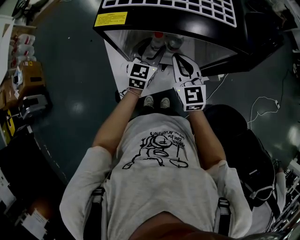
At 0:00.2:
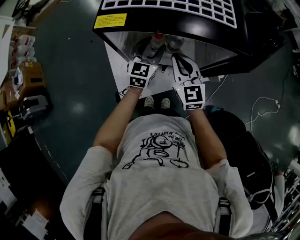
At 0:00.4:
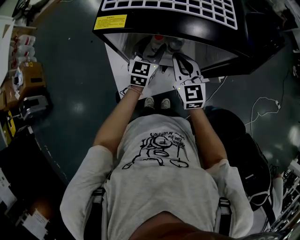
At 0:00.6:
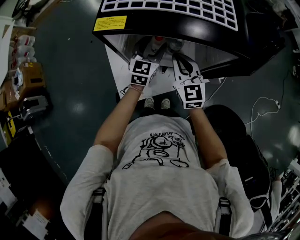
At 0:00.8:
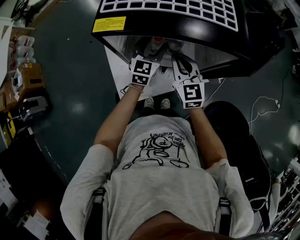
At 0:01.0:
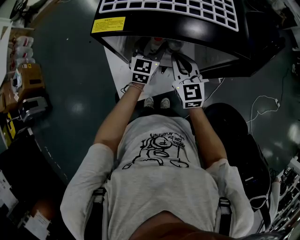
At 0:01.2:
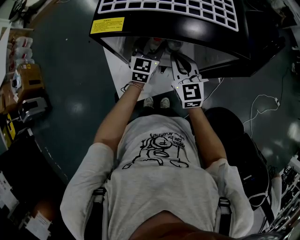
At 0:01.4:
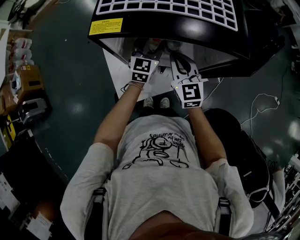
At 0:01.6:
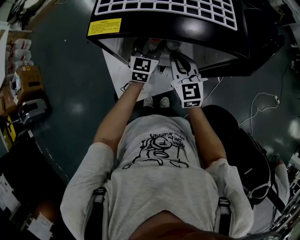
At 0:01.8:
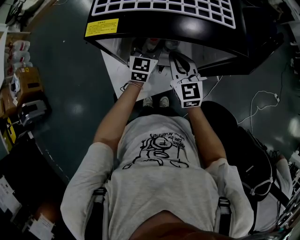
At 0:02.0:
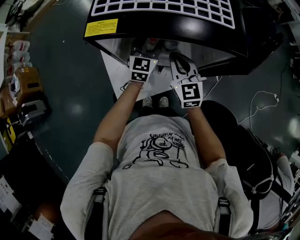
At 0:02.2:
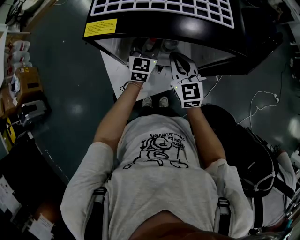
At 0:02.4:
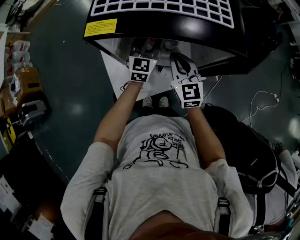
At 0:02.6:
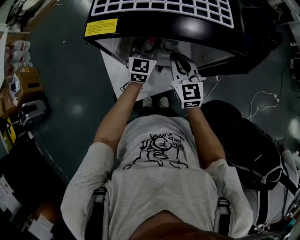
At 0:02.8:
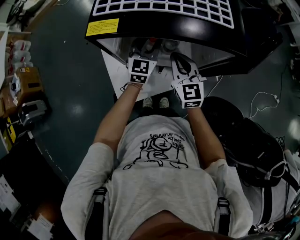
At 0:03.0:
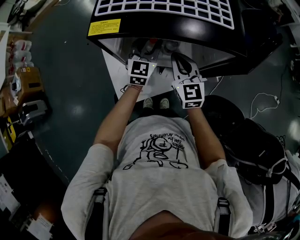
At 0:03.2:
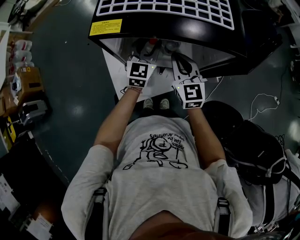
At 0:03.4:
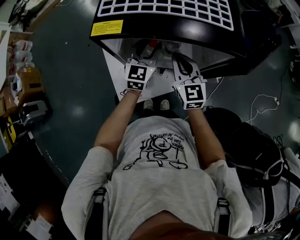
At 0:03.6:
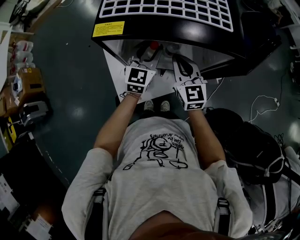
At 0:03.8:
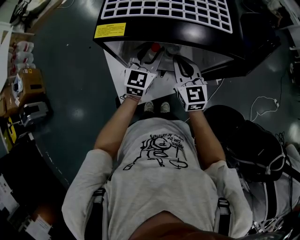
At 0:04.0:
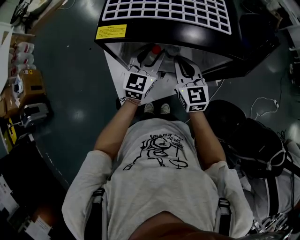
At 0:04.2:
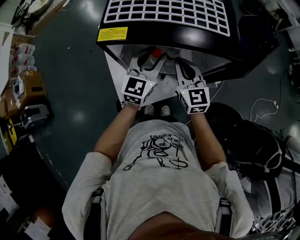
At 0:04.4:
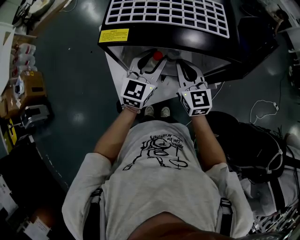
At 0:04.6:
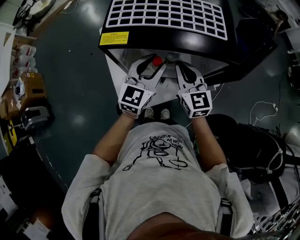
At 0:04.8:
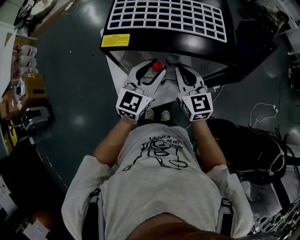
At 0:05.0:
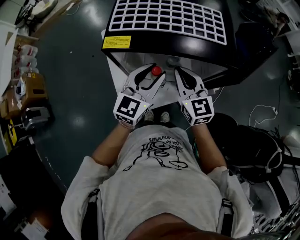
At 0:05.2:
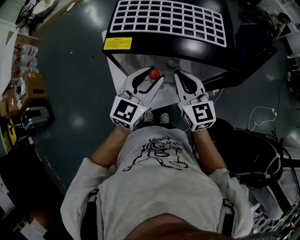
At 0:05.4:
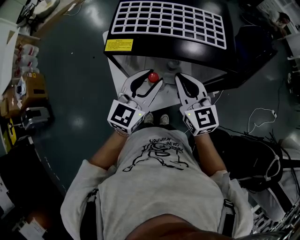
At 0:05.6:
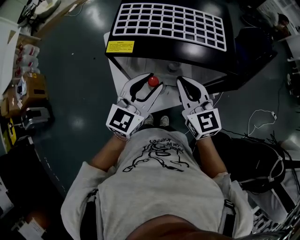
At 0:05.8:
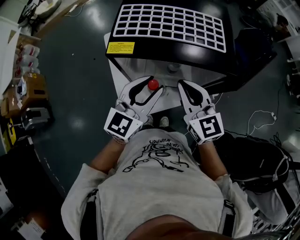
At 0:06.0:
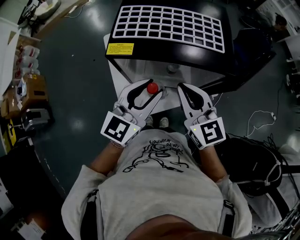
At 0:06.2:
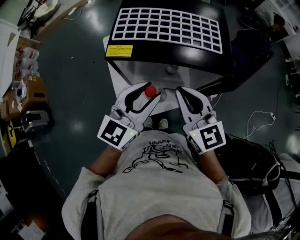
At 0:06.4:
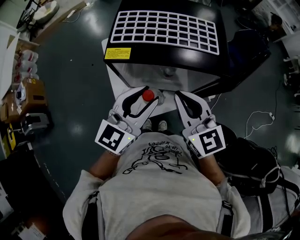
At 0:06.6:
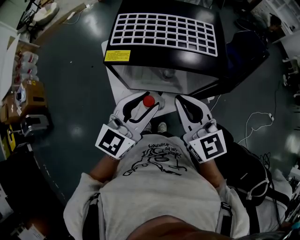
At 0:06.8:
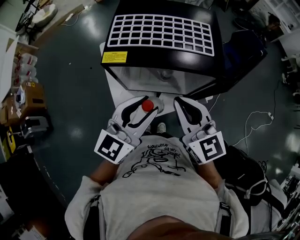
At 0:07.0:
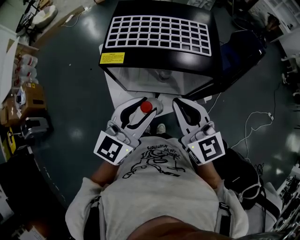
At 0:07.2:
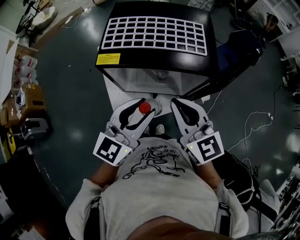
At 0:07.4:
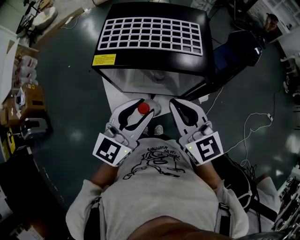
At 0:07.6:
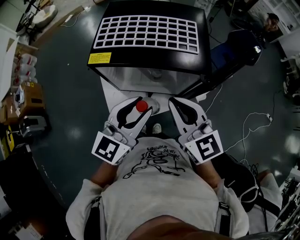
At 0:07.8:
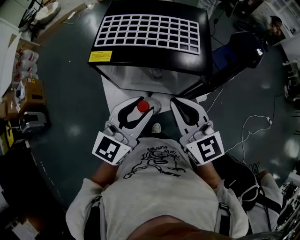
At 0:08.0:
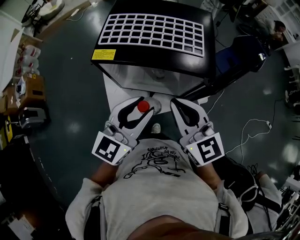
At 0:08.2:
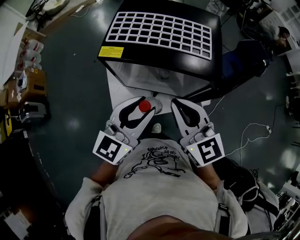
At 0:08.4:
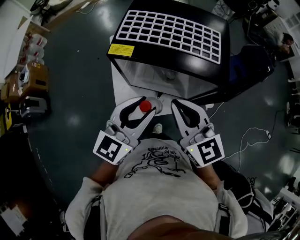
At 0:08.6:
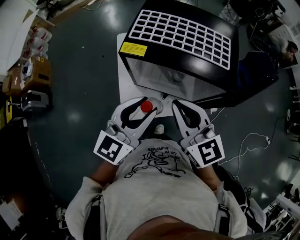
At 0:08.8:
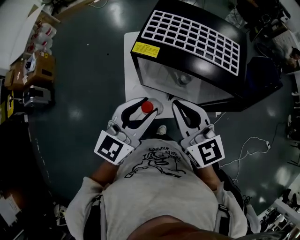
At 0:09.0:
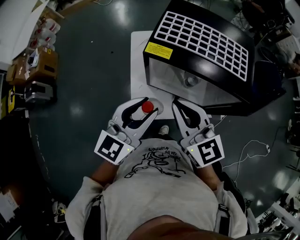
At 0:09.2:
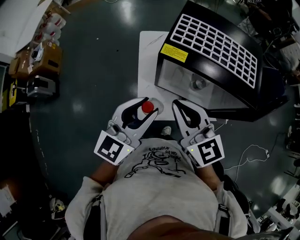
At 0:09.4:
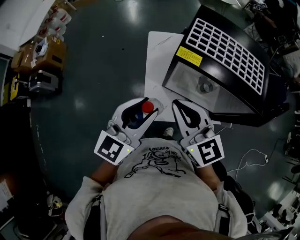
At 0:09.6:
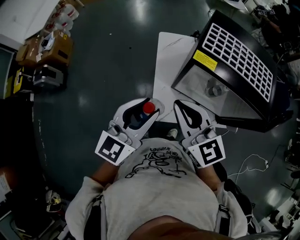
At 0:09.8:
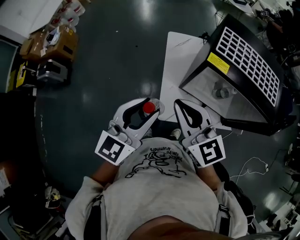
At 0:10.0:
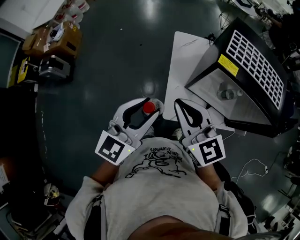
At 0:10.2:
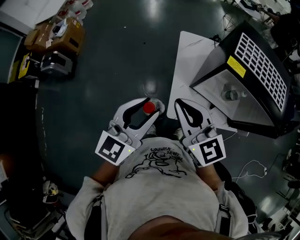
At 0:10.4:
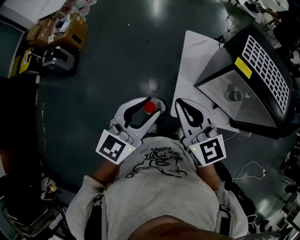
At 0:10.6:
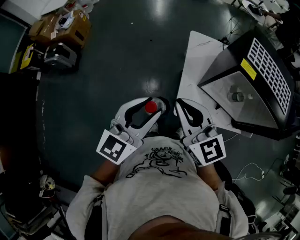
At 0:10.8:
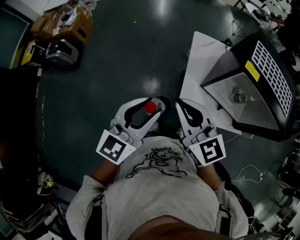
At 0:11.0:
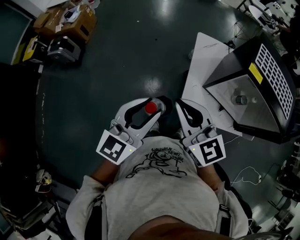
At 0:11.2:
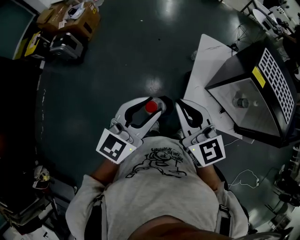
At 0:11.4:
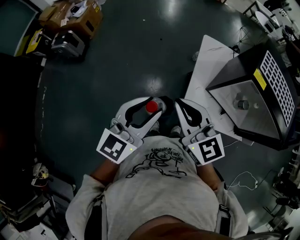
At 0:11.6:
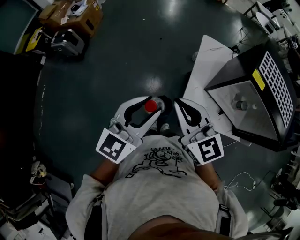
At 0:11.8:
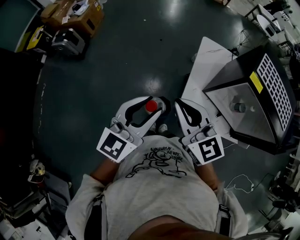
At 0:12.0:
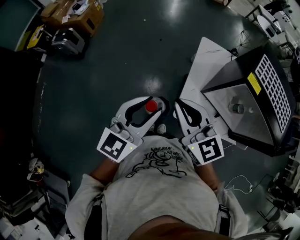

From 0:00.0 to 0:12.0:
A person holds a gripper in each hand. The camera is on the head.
From 0:00.0 to 0:01.6: The left gripper heads forward, covering roughly 5 cm.
From 0:01.6 to 0:03.0: The grippers stay close to where they were, moving slightly.
From 0:03.0 to 0:04.4: The left gripper shifts some 10 cm upward and backward.
From 0:04.4 to 0:06.0: Both grippers move upward and backward, roughly 15 cm.
From 0:06.0 to 0:07.6: Both grippers travel together to the right, approximately 5 cm.
From 0:07.6 to 0:09.0: The grippers both shift to the left by roughly 15 cm.
From 0:09.0 to 0:10.4: The two grippers go roughly 25 cm to the left.

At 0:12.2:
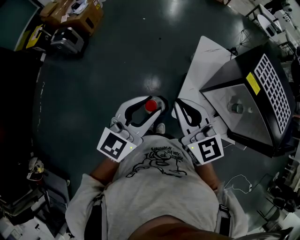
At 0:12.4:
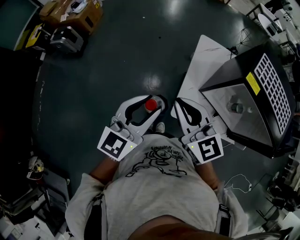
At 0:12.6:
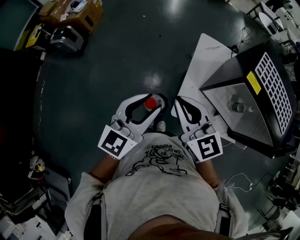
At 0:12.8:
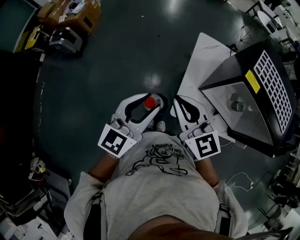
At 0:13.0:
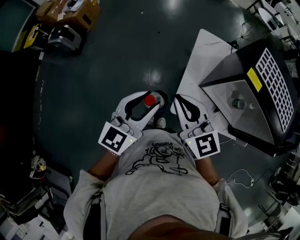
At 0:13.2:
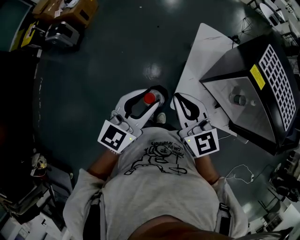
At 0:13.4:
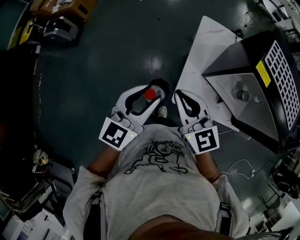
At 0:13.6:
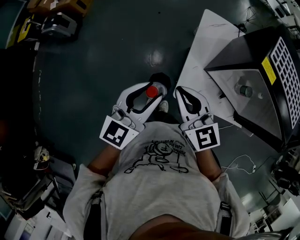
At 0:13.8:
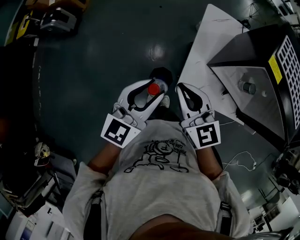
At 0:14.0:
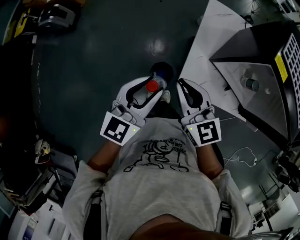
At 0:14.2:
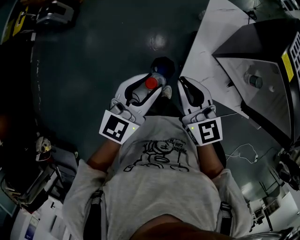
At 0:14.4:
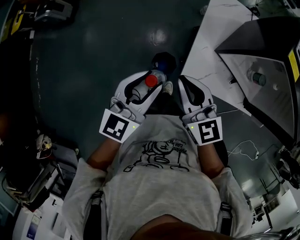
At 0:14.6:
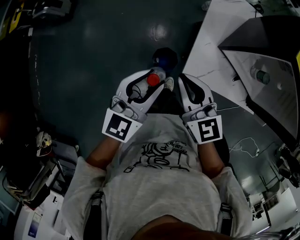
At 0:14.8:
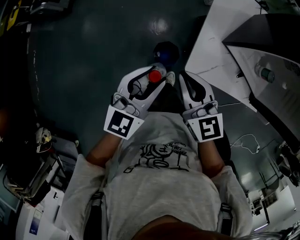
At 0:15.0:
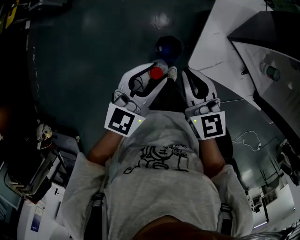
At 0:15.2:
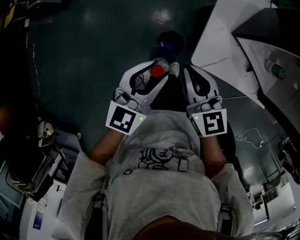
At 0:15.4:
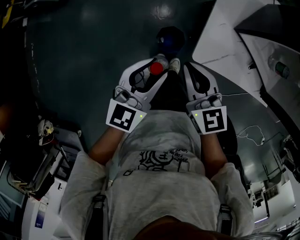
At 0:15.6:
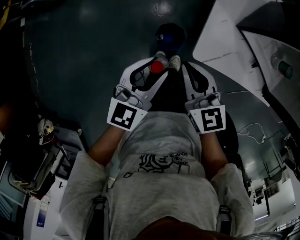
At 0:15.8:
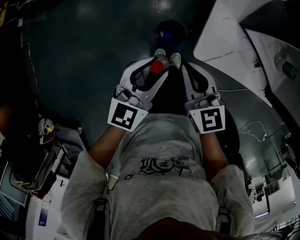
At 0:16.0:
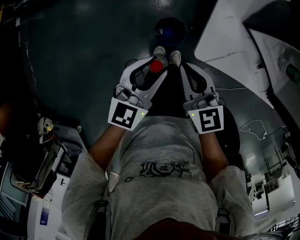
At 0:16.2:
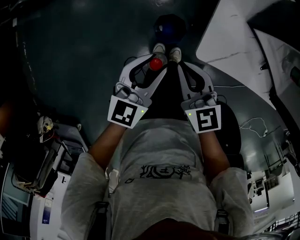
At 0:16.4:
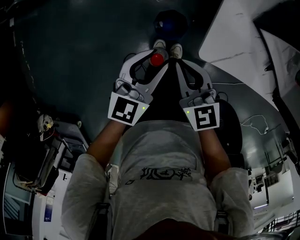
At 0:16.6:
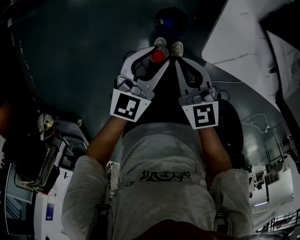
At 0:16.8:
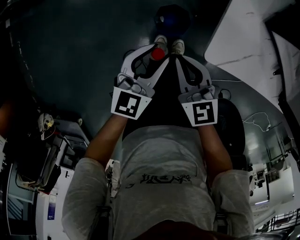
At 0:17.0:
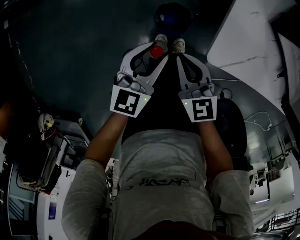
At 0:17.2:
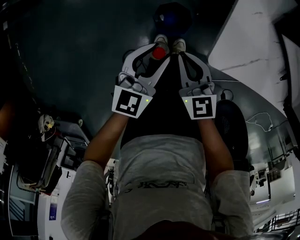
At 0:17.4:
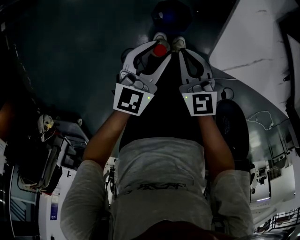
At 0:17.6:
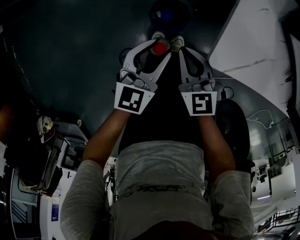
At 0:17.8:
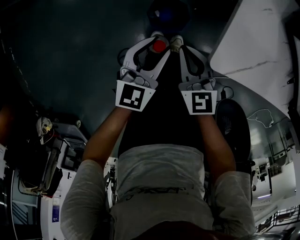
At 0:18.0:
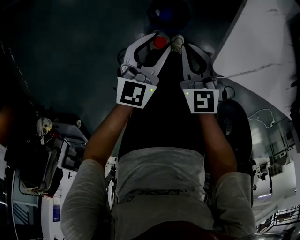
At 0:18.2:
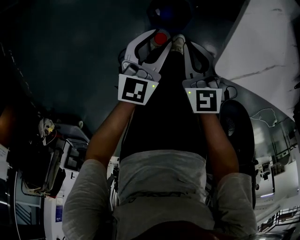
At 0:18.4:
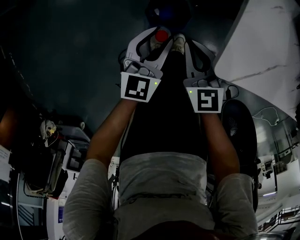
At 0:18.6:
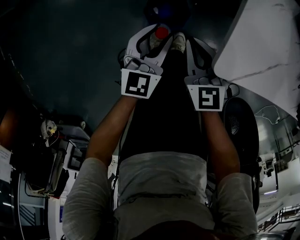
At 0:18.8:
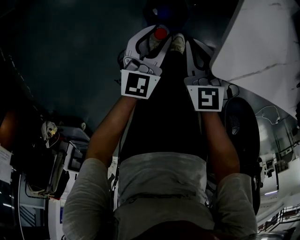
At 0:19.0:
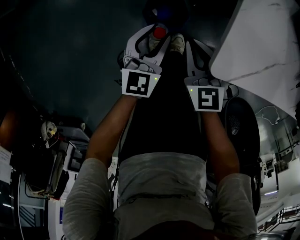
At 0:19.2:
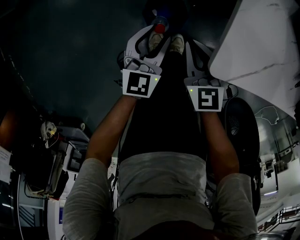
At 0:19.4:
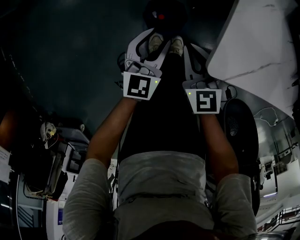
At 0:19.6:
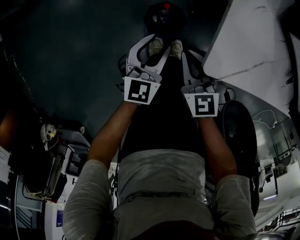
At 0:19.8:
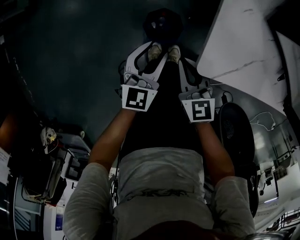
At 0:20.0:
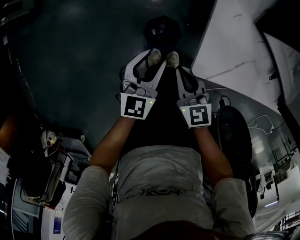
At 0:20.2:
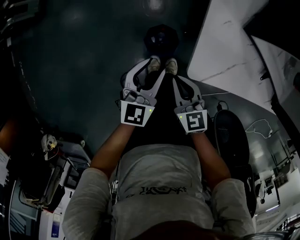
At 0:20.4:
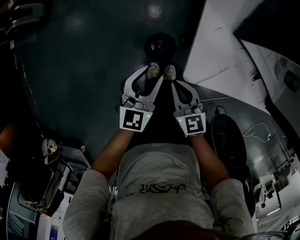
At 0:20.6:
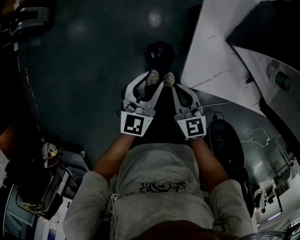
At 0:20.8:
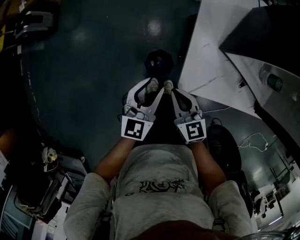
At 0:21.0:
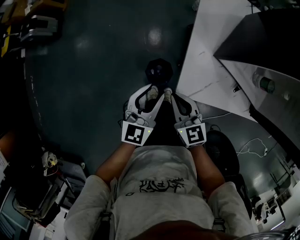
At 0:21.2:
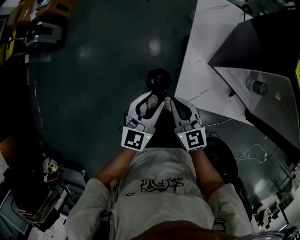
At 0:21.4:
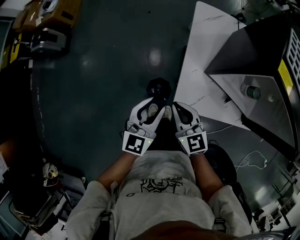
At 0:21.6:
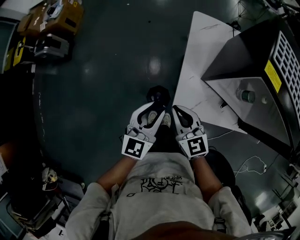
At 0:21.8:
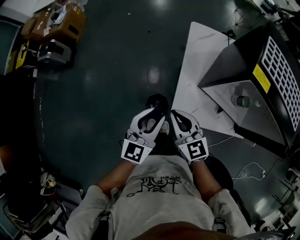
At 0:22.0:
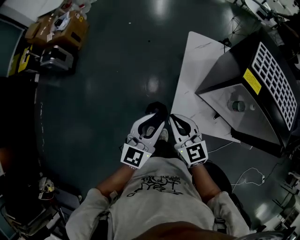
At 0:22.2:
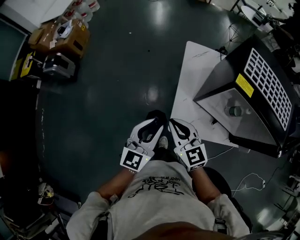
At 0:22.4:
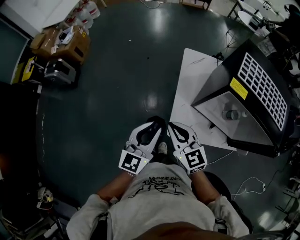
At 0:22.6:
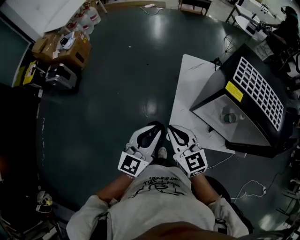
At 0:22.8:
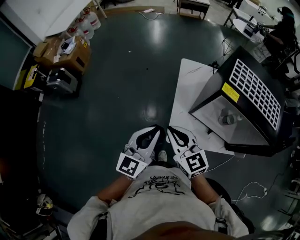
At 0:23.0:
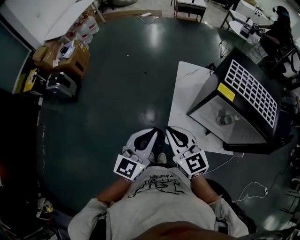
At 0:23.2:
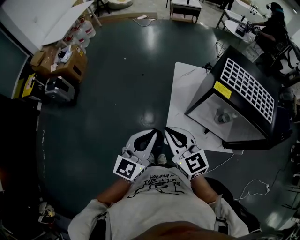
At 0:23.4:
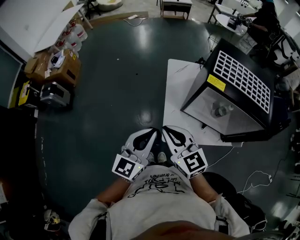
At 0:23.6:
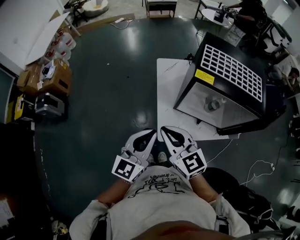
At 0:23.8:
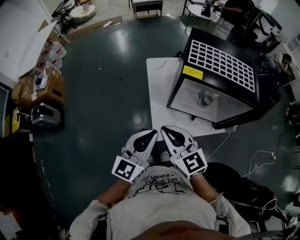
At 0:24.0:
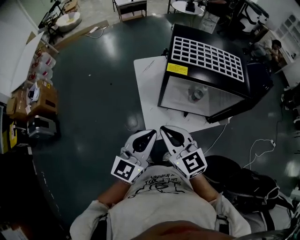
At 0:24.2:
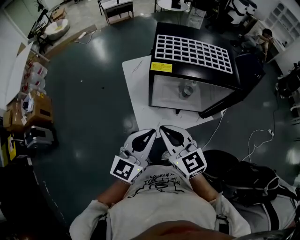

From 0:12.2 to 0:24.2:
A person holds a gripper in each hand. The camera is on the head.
From 0:12.2 to 0:13.8: Both grippers travel together downward, about 10 cm.
From 0:13.8 to 0:15.2: Both grippers travel together downward, about 10 cm.
From 0:15.2 to 0:16.6: Both grippers travel together downward, roughly 20 cm.
From 0:16.6 to 0:18.2: The two grippers go approximately 20 cm downward.
From 0:18.2 to 0:19.8: The grippers stay close to where they were, moving slightly.
From 0:19.8 to 0:21.2: The grippers both shift upward by approximately 25 cm.
From 0:21.2 to 0:22.6: Both grippers travel together upward, roughly 20 cm. The left gripper closes up.
From 0:22.6 to 0:24.2: The right gripper shifts by some 15 cm, and rotates some 30 degrees; the left gripper moves some 15 cm, and rotates about 30 degrees.
